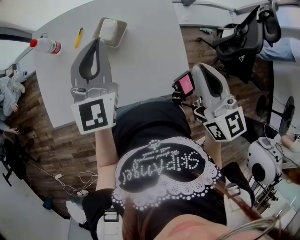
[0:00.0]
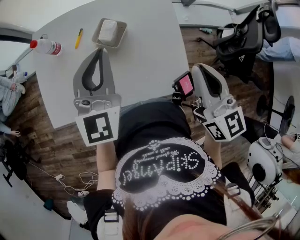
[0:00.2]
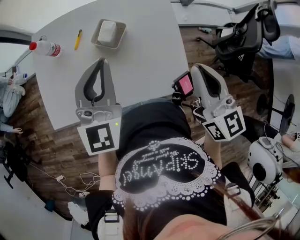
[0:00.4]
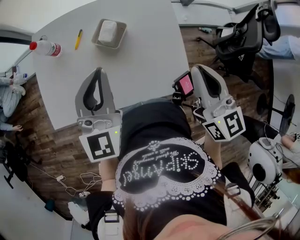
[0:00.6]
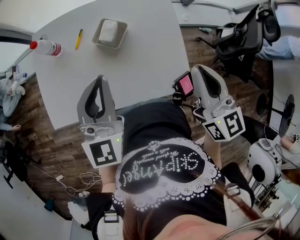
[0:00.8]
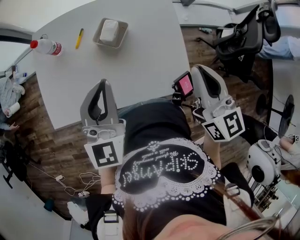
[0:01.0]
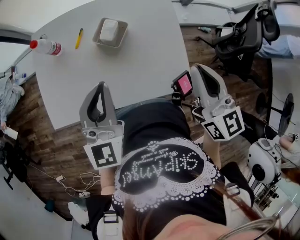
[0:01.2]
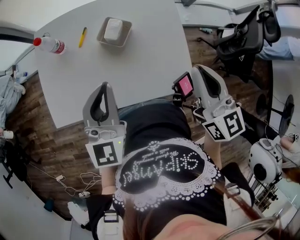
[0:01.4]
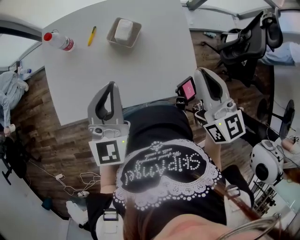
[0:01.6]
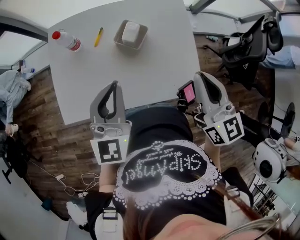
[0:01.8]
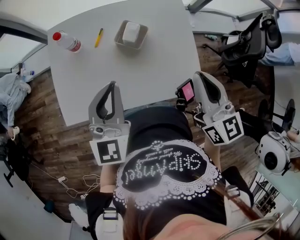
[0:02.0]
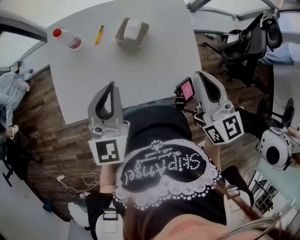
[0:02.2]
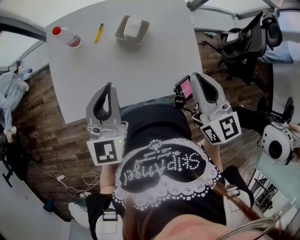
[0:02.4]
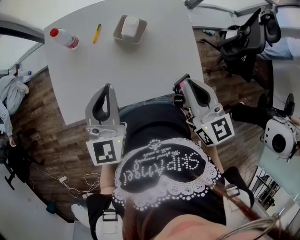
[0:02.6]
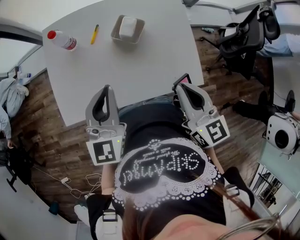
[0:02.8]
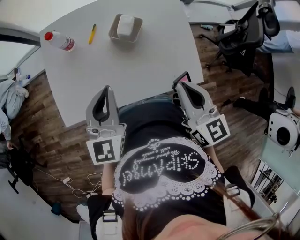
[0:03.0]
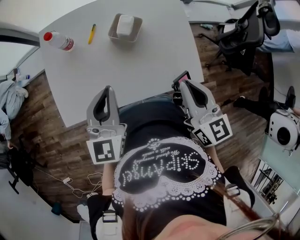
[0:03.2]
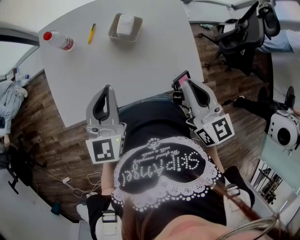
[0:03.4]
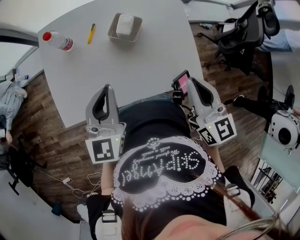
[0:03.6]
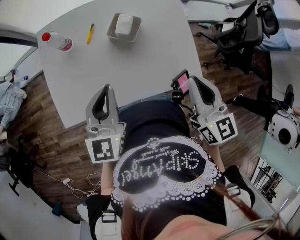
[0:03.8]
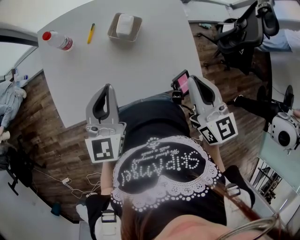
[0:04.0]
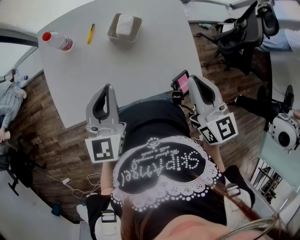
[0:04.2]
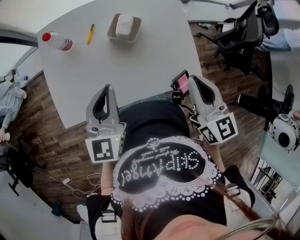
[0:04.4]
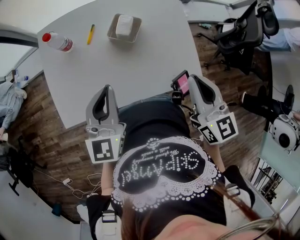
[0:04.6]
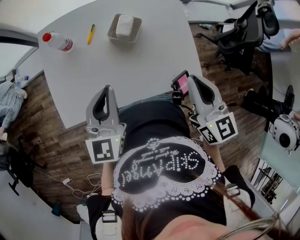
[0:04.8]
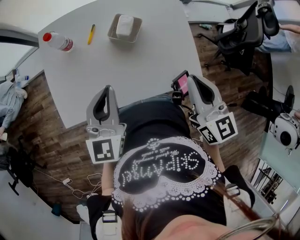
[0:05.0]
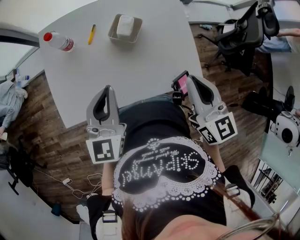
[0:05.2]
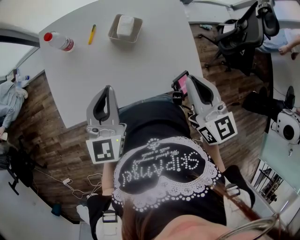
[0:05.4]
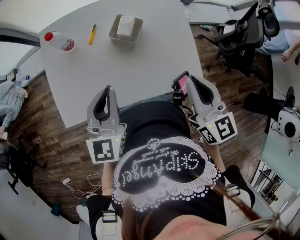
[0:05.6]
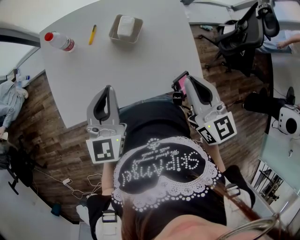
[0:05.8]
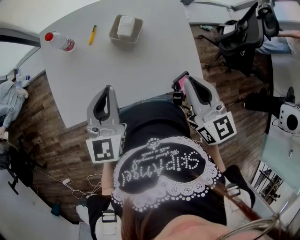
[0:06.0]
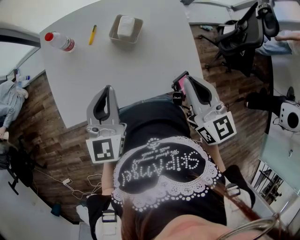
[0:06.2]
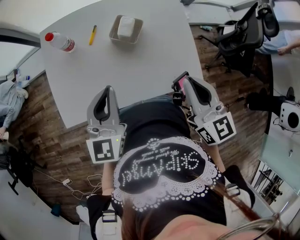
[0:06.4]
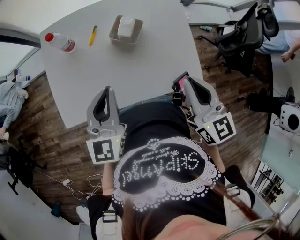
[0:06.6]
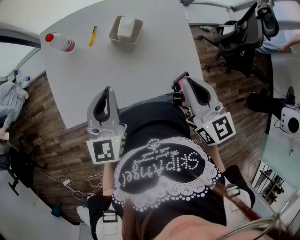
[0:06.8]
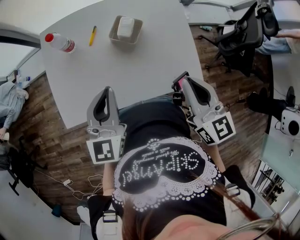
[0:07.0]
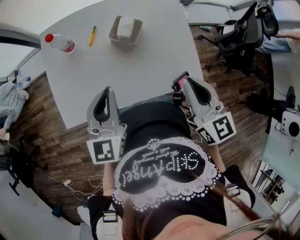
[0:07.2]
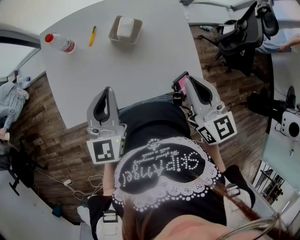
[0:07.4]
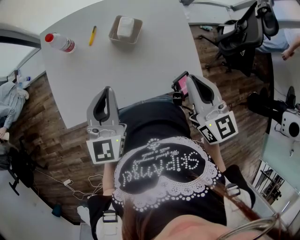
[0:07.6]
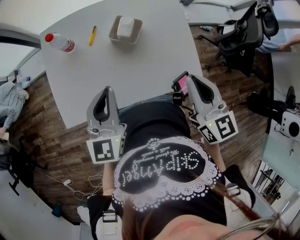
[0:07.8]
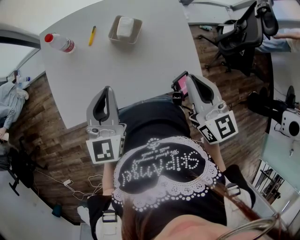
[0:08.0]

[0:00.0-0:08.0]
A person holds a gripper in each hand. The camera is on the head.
0:00.0 to 0:01.6: The left gripper is displaced backward by approximately 10 cm.
0:01.6 to 0:03.2: The left gripper ends up approximately 5 cm from where it was, while the right gripper is displaced to the left, downward and backward by roughly 10 cm.
0:03.2 to 0:04.8: The grippers stay close to where they were, moving slightly.
0:04.8 to 0:06.4: Neither gripper changes place.
0:06.4 to 0:08.0: Neither gripper changes place.

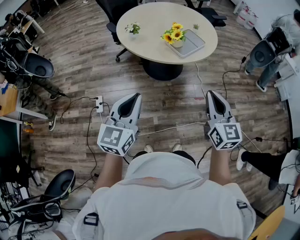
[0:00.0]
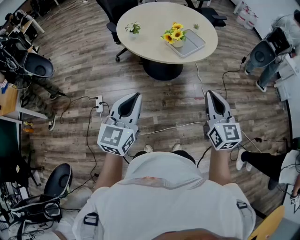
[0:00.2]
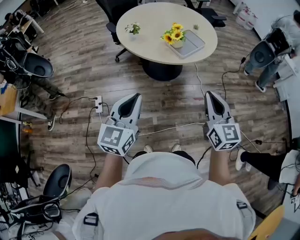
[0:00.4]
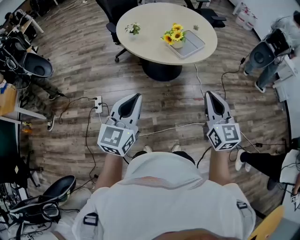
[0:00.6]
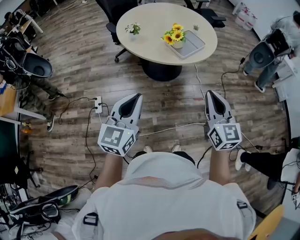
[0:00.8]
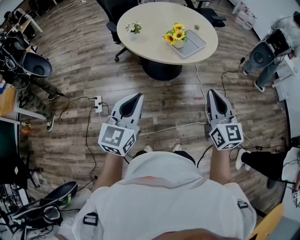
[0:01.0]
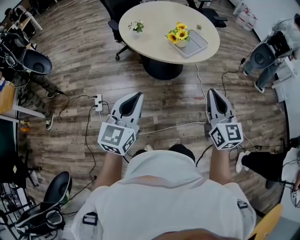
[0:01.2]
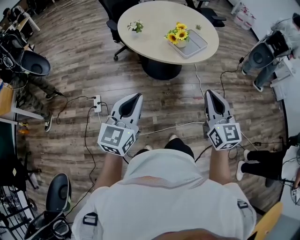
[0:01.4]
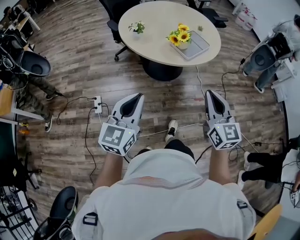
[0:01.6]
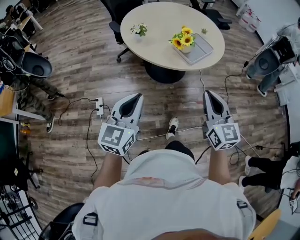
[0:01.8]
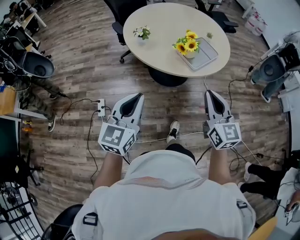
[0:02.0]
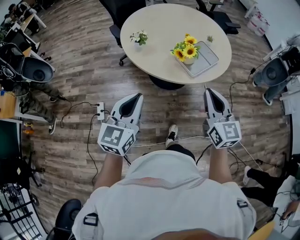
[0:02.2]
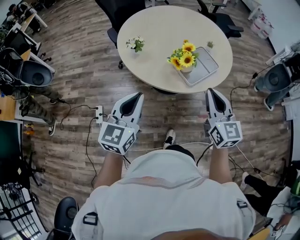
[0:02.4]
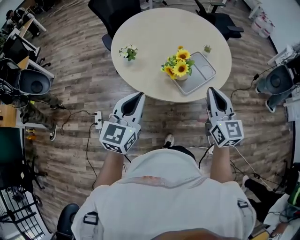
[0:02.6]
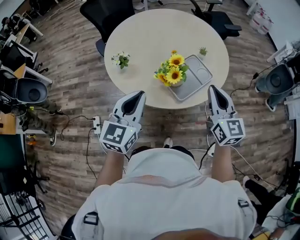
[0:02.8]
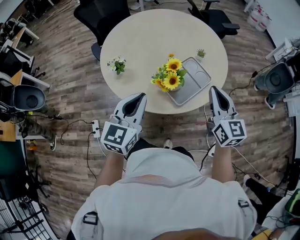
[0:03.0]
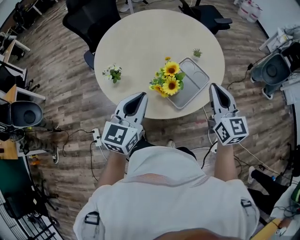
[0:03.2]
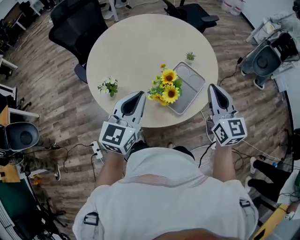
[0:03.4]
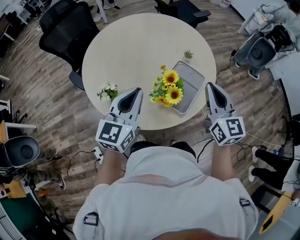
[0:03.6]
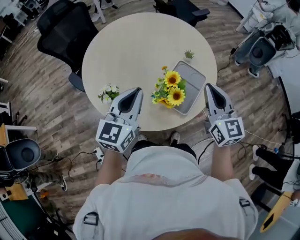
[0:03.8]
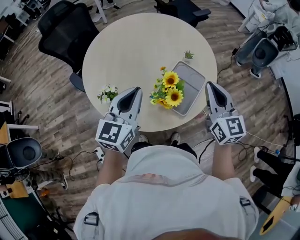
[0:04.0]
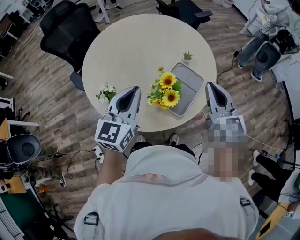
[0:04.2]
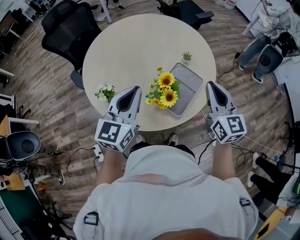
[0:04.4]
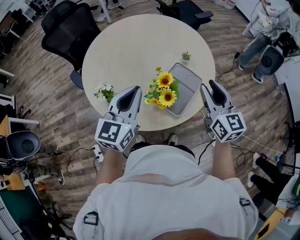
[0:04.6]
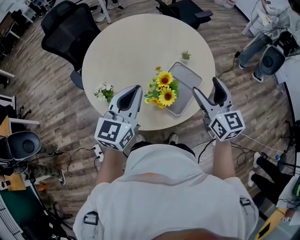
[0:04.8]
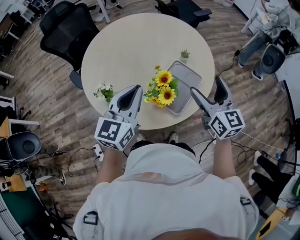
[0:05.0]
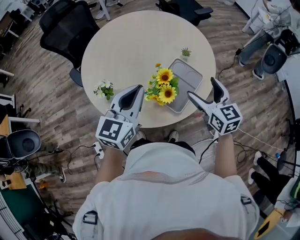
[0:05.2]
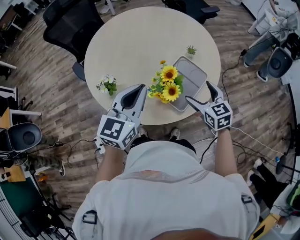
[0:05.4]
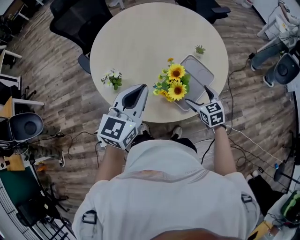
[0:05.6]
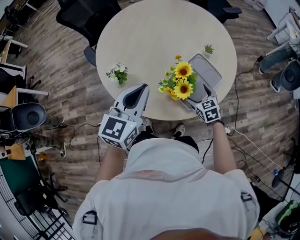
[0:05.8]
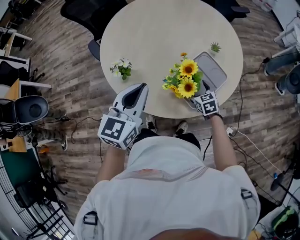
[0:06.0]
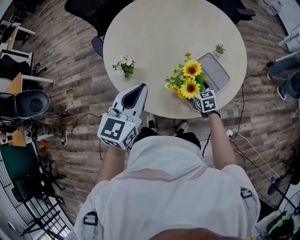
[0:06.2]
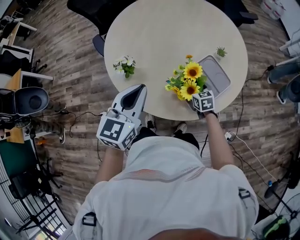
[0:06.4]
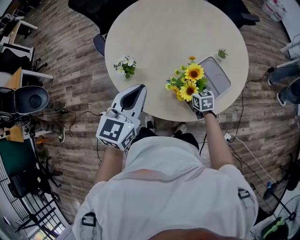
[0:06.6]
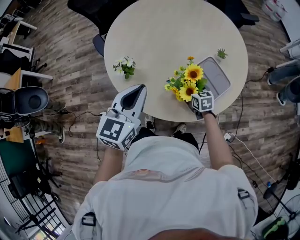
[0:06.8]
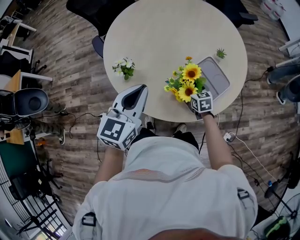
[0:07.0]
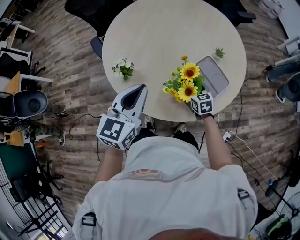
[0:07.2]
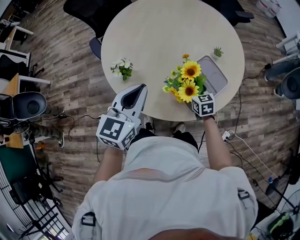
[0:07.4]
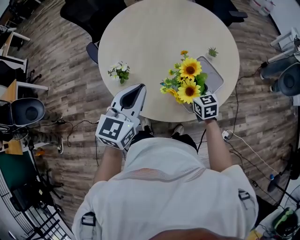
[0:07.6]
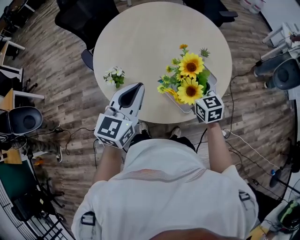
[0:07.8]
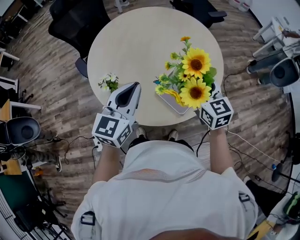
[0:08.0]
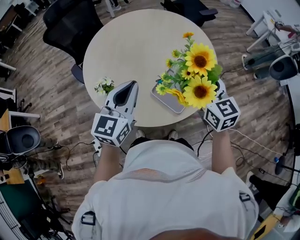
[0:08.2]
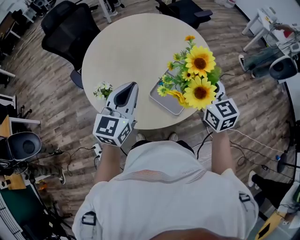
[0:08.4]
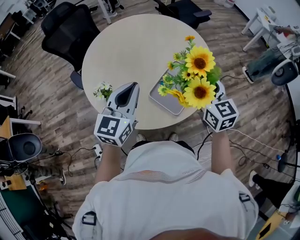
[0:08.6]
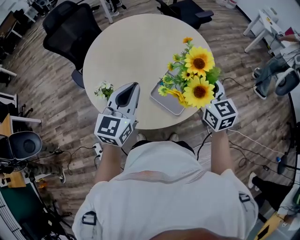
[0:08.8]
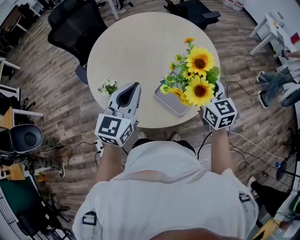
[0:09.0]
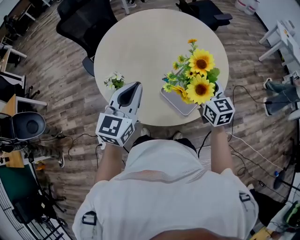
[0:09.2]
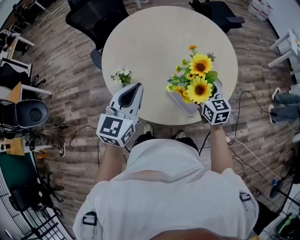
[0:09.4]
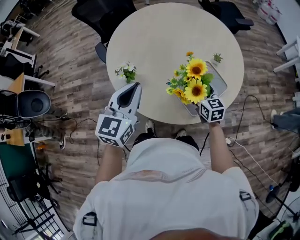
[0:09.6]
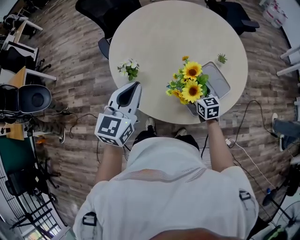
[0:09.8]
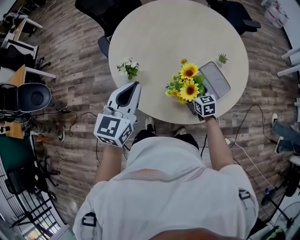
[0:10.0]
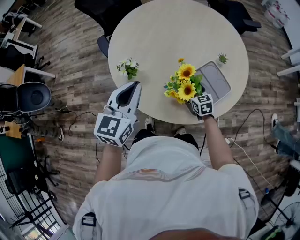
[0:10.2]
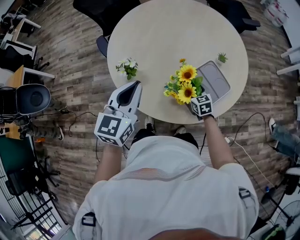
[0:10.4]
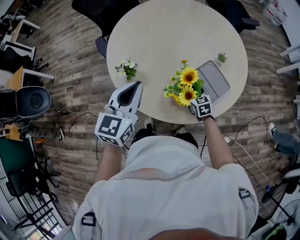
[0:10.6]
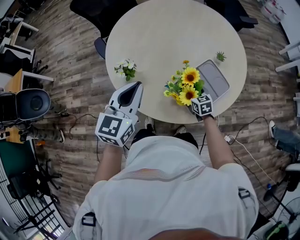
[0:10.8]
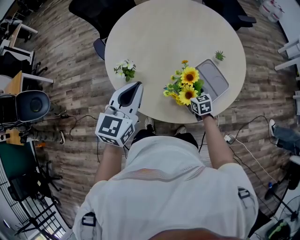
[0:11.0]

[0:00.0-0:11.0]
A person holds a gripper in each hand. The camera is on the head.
0:00.0 to 0:01.6: The grippers both shift to the left by roughly 5 cm.
0:01.6 to 0:03.2: The pair of grippers is taken forward, about 50 cm.
0:03.2 to 0:04.8: The left gripper is displaced forward by about 10 cm. Meanwhile the right gripper opens up.
0:04.8 to 0:06.2: The left gripper is displaced downward and to the left by roughly 10 cm. The right gripper goes roughly 35 cm downward, and points its fingers approximately 40 degrees further downward.
0:06.2 to 0:07.8: The right gripper shifts roughly 20 cm upward.
0:07.8 to 0:09.4: The right gripper goes upward and returns, some 10 cm each way.
0:09.4 to 0:11.0: The right gripper heads downward, covering approximately 20 cm, and rotates roughly 20 degrees.

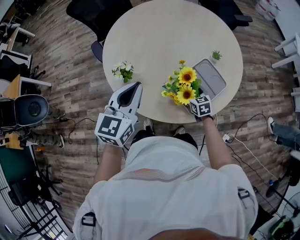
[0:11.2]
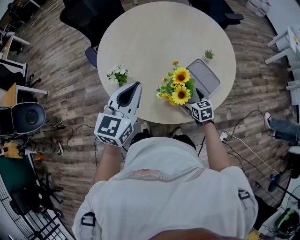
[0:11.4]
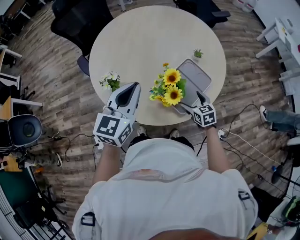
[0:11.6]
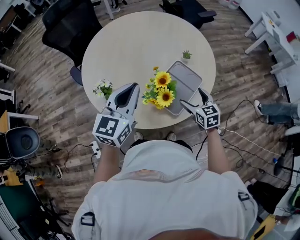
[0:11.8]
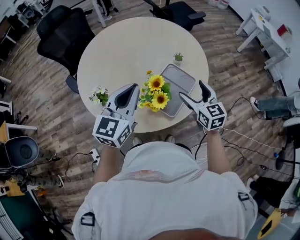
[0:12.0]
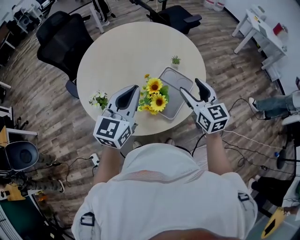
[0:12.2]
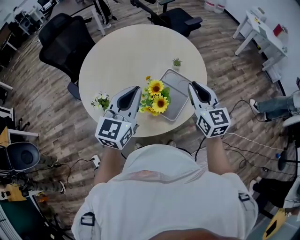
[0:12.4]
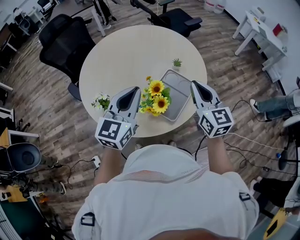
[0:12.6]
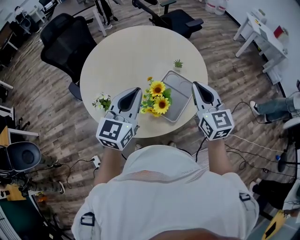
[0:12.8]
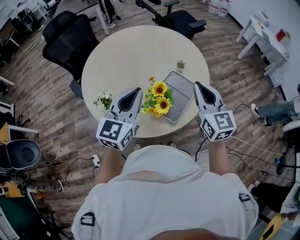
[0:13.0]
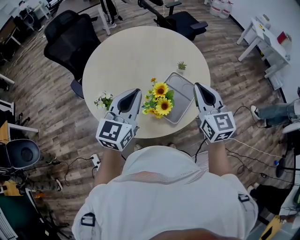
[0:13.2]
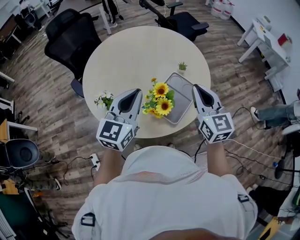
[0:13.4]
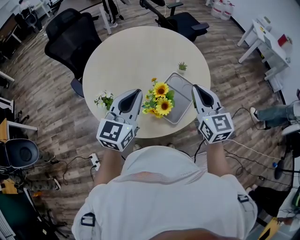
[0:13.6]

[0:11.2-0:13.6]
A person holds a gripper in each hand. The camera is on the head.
0:11.2 to 0:12.4: The right gripper heads upward, covering approximately 35 cm, angles its fingers upward, by roughly 30 degrees, and closes its fingers; the left gripper shifts about 10 cm to the right and upward, and swivels approximately 20 degrees.
0:12.4 to 0:13.6: The grippers make only small movements.

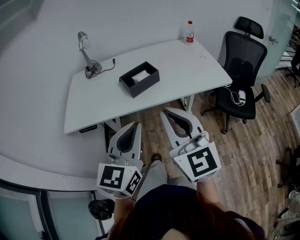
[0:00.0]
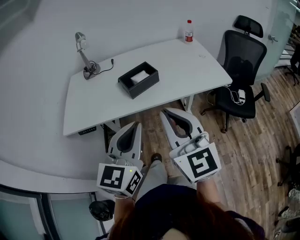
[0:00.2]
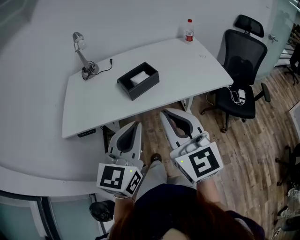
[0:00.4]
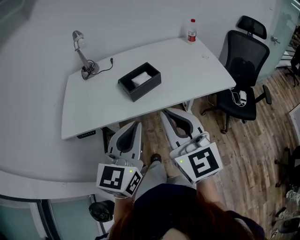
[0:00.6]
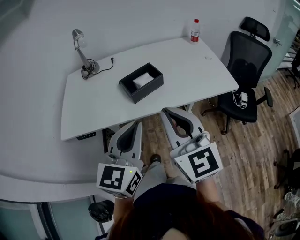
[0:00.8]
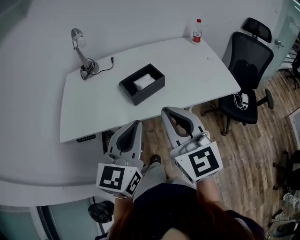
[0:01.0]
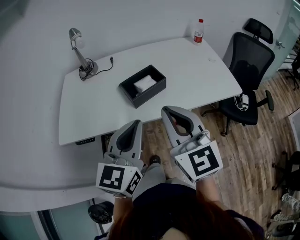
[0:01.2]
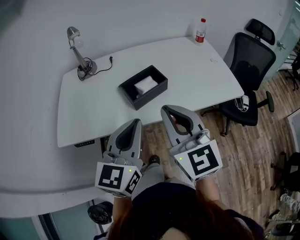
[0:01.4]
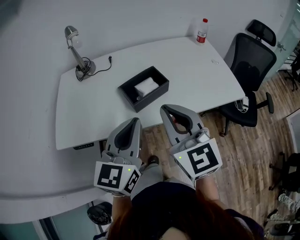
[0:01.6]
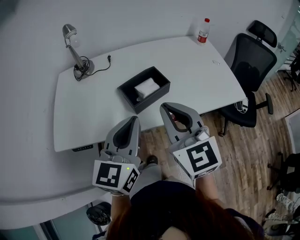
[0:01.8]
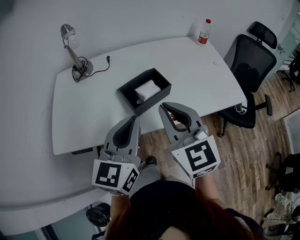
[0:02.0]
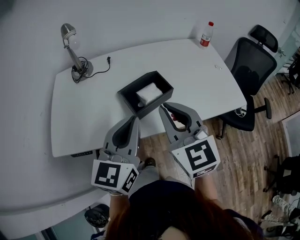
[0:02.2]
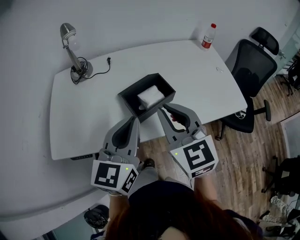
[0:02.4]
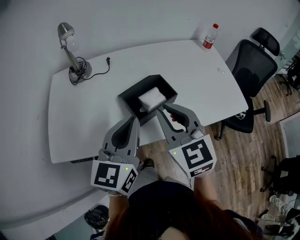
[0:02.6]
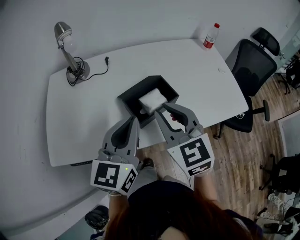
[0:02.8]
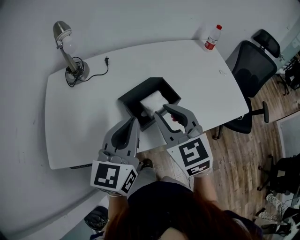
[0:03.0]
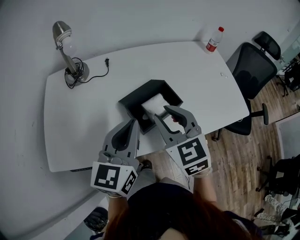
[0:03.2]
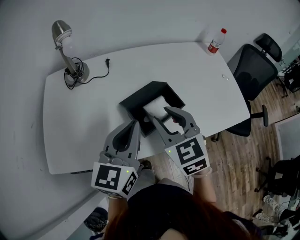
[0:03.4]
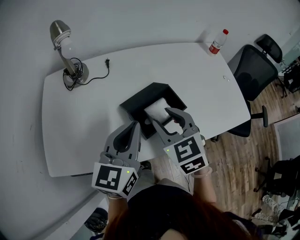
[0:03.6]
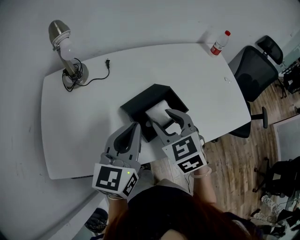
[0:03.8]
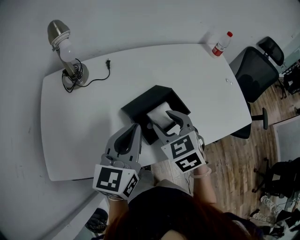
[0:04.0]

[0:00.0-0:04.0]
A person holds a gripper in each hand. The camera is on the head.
0:00.0 to 0:01.4: Both grippers move forward, about 15 cm.
0:01.4 to 0:02.6: Both grippers travel together forward, some 10 cm.
0:02.6 to 0:04.0: The right gripper moves downward and forward, roughly 15 cm, changes its angle by approximately 30 degrees, and opens up, while the left gripper heads forward, covering approximately 10 cm.
